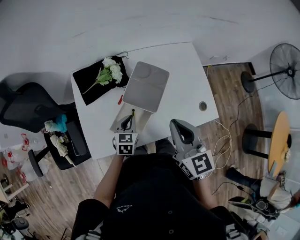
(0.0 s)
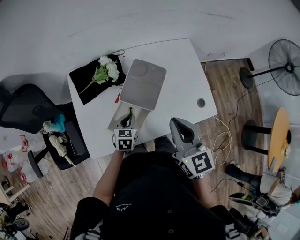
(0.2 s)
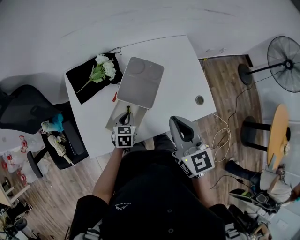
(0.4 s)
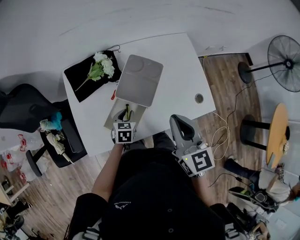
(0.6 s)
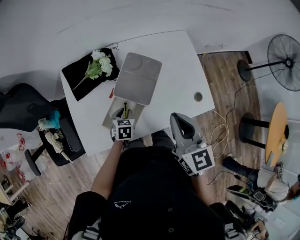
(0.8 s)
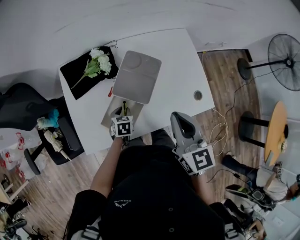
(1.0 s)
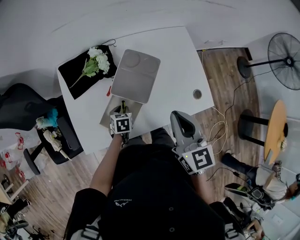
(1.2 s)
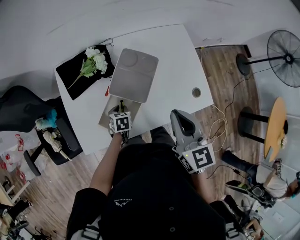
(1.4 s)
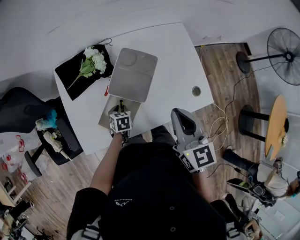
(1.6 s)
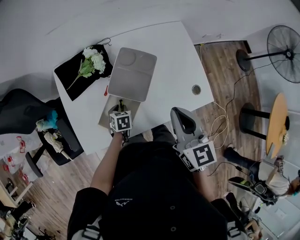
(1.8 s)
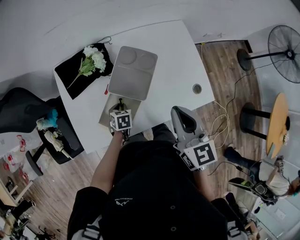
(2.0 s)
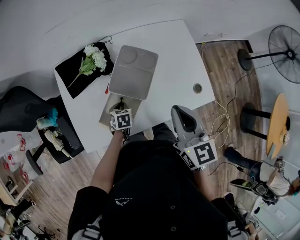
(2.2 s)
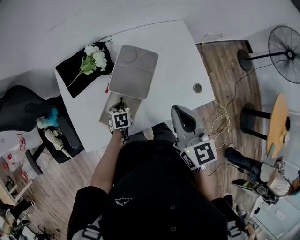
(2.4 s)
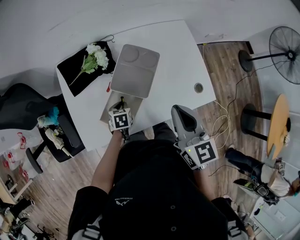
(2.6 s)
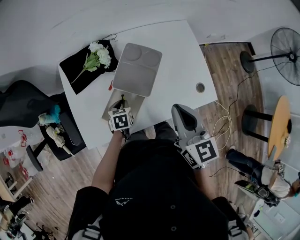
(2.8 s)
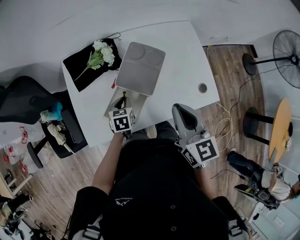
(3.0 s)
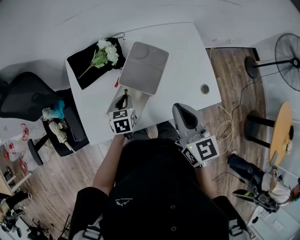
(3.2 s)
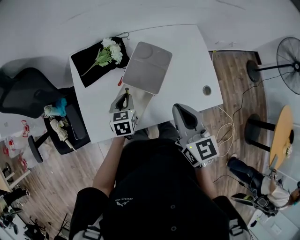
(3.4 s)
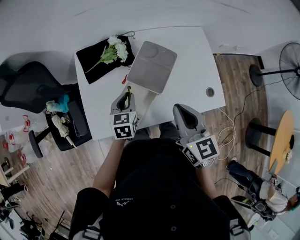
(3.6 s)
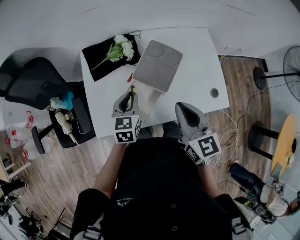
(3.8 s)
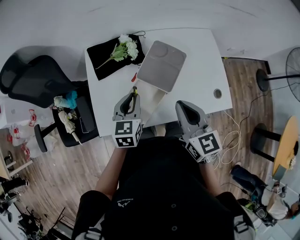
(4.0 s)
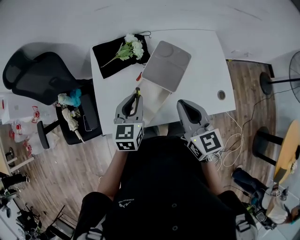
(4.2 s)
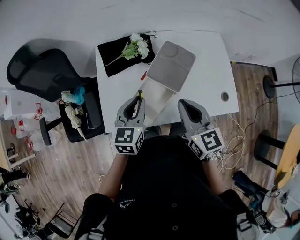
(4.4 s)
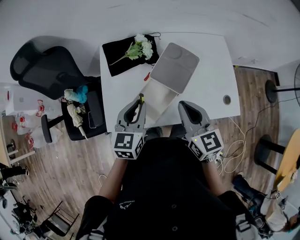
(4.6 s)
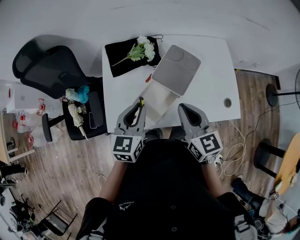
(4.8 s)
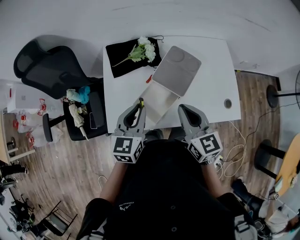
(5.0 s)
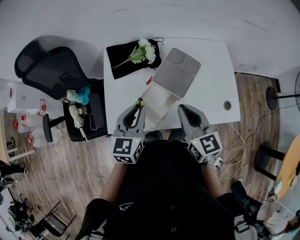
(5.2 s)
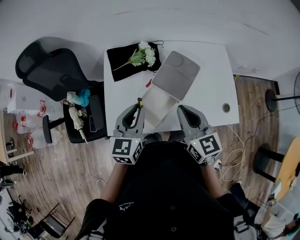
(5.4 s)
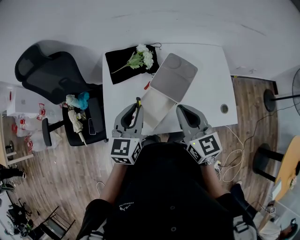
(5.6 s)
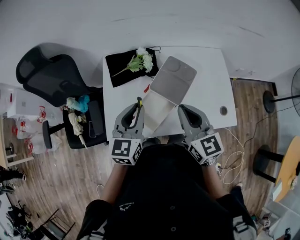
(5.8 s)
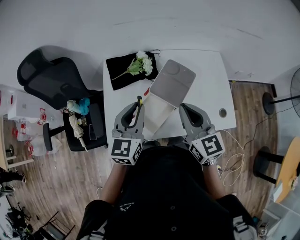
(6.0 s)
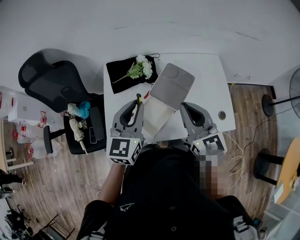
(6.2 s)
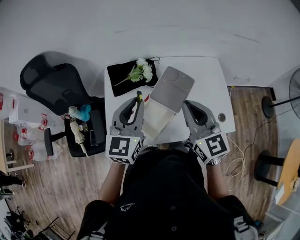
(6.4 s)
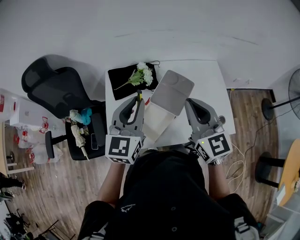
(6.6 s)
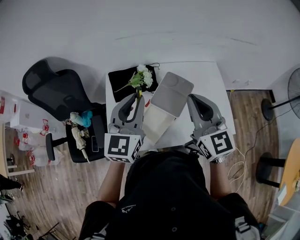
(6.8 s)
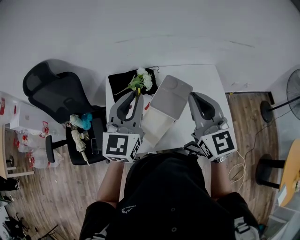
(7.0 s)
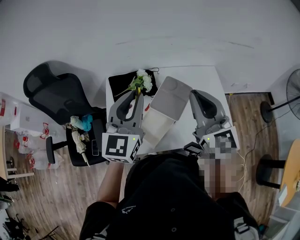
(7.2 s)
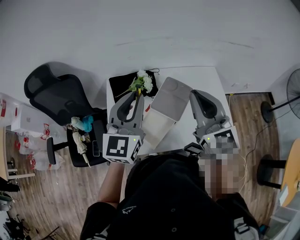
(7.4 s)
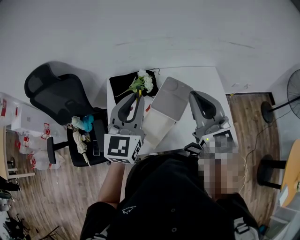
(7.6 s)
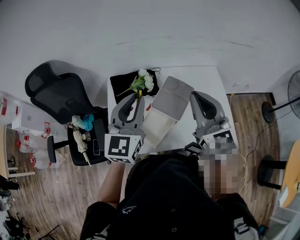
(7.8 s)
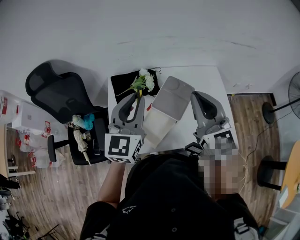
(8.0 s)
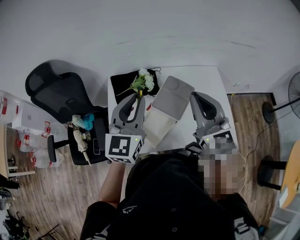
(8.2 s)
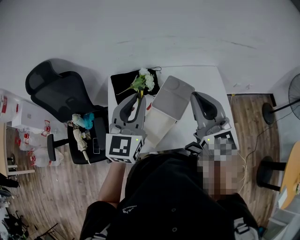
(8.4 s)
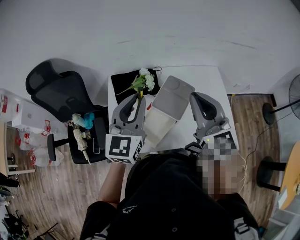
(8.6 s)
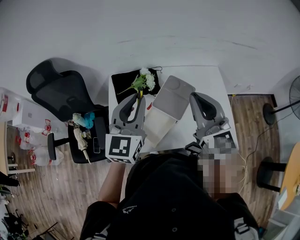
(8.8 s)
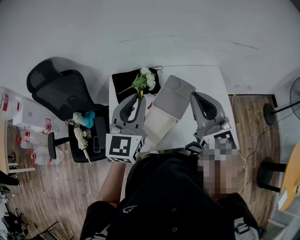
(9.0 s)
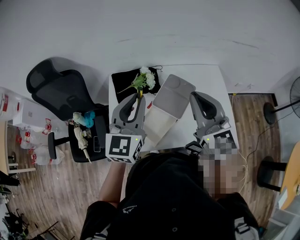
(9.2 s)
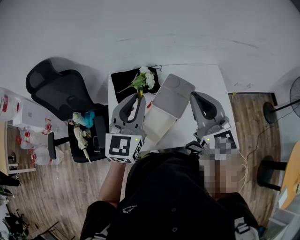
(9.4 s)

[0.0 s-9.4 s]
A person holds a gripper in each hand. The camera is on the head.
0.0 to 1.6 s: The left gripper heads downward, covering about 10 cm, changes its angle by approximately 30 degrees, and opens its fingers, while the right gripper goes roughly 5 cm to the right.
1.6 to 3.2 s: The left gripper shifts approximately 10 cm upward.
3.2 to 4.8 s: The left gripper is displaced upward and backward by roughly 20 cm, and rotates roughly 20 degrees, while the right gripper moves to the left, roughly 10 cm.
4.8 to 6.2 s: The two grippers go approximately 10 cm upward.
6.2 to 7.8 s: The two grippers go about 10 cm upward.
7.8 to 9.4 s: The two grippers keep their place.

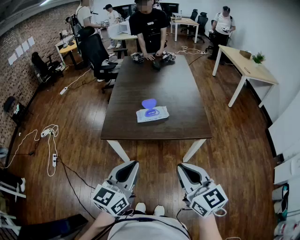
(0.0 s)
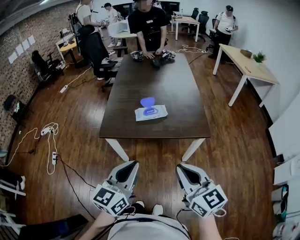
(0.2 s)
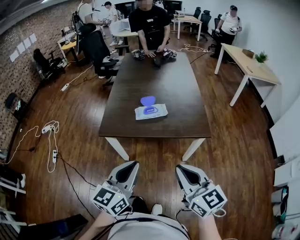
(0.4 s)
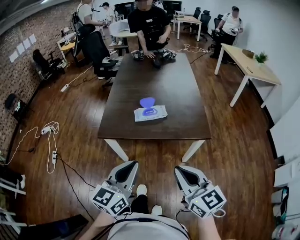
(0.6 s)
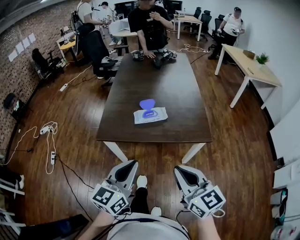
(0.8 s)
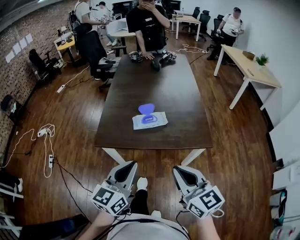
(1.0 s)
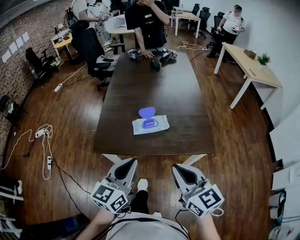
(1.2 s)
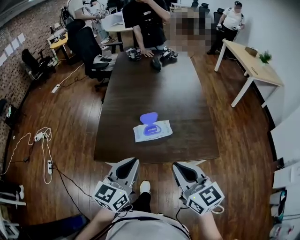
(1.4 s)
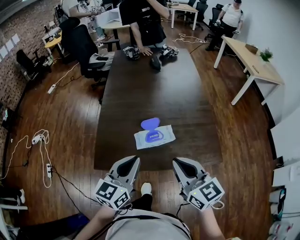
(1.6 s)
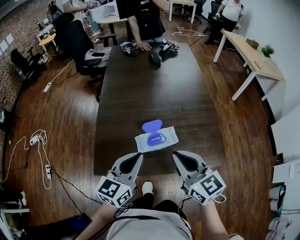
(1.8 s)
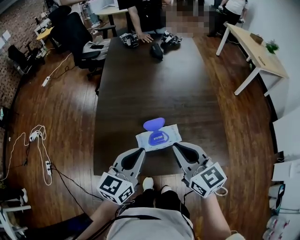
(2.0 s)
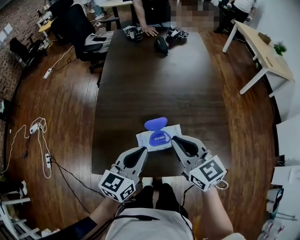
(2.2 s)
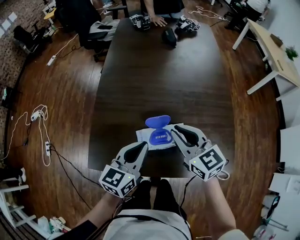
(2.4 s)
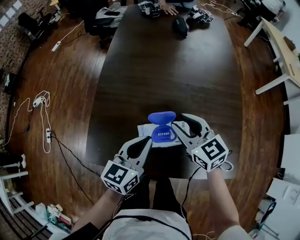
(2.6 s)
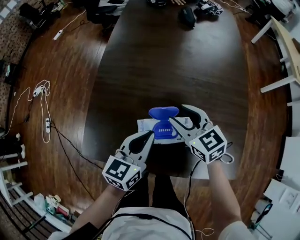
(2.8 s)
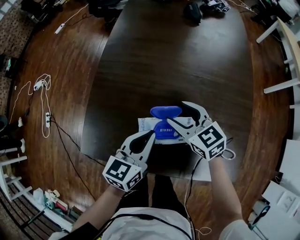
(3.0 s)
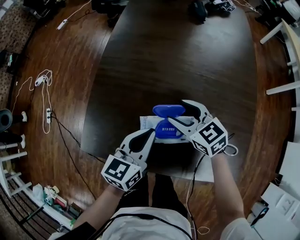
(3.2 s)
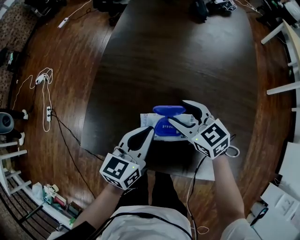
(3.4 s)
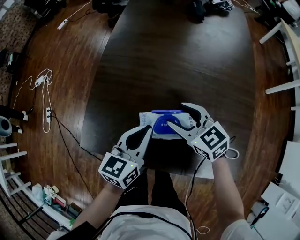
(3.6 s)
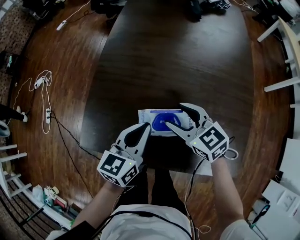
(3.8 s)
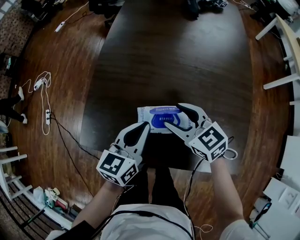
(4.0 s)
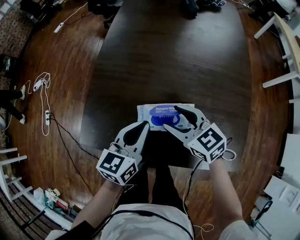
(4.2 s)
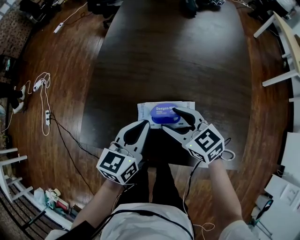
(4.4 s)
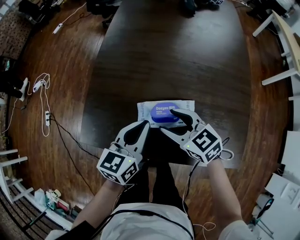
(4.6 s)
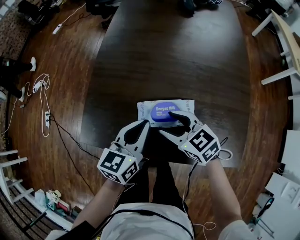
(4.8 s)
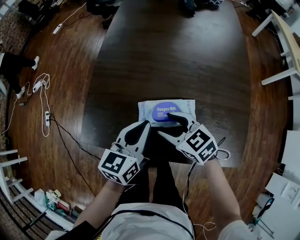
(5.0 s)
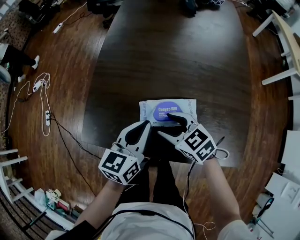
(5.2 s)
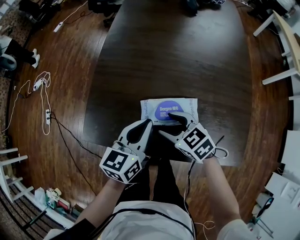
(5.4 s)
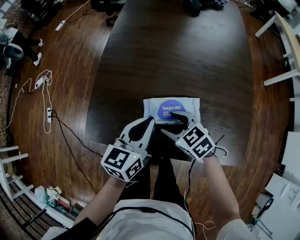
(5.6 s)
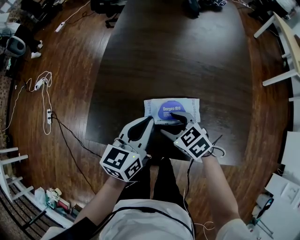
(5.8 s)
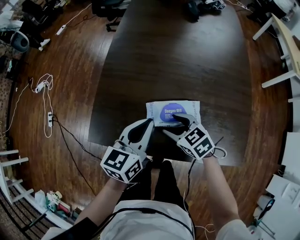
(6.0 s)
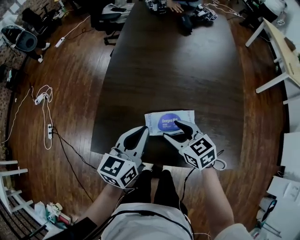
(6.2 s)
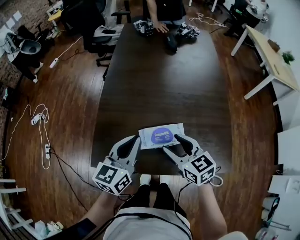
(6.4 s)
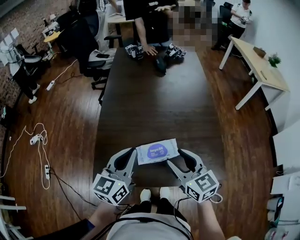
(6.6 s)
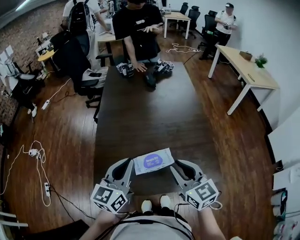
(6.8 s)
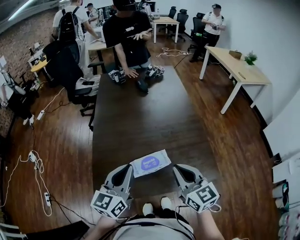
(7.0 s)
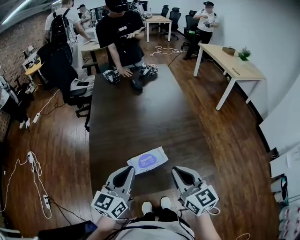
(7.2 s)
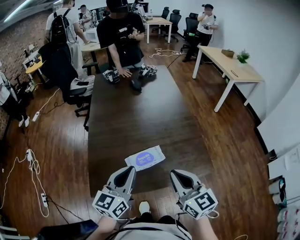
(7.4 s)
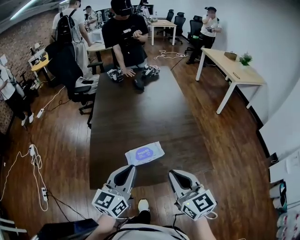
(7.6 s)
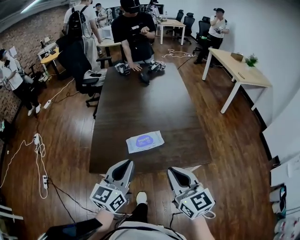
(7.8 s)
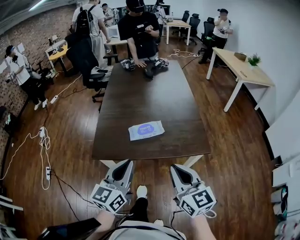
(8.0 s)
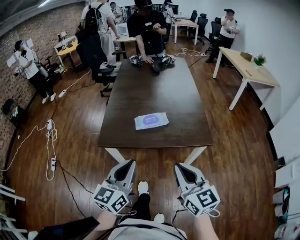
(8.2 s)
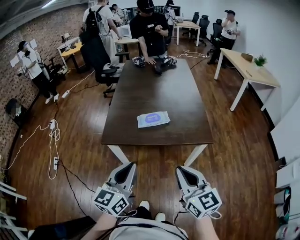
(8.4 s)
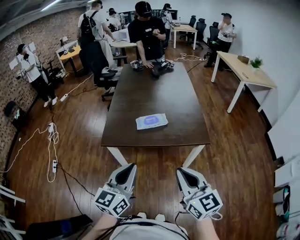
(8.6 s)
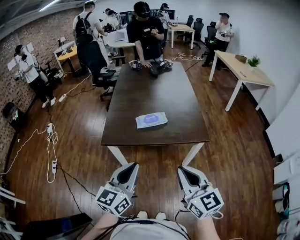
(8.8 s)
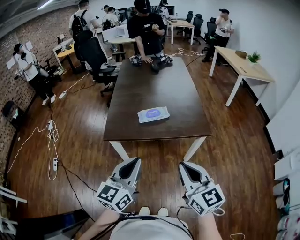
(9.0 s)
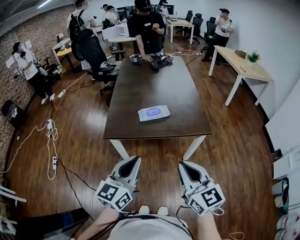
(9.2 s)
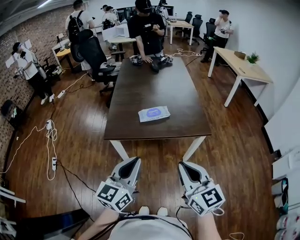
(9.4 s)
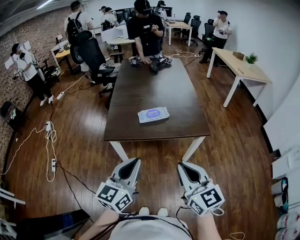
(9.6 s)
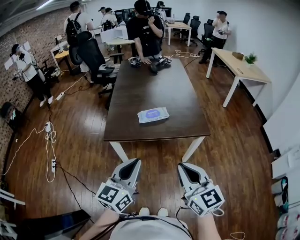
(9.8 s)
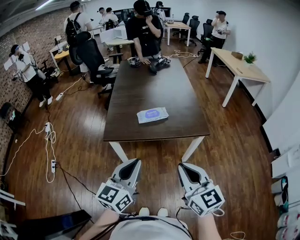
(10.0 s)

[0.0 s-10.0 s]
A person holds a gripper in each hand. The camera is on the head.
0.0 to 1.4 s: The two grippers go approximately 20 cm forward.
1.4 to 2.8 s: Both grippers move forward and downward, roughly 35 cm. The right gripper changes its angle by roughly 20 degrees, and opens its fingers.
2.8 to 4.2 s: The right gripper goes approximately 5 cm backward.
4.2 to 5.8 s: The right gripper shifts approximately 5 cm downward, and rotates roughly 20 degrees.
5.8 to 7.2 s: The left gripper shifts about 20 cm upward, and changes its angle by roughly 20 degrees. The right gripper travels upward by approximately 25 cm, angles its fingers upward, by about 40 degrees, and closes.
7.2 to 8.6 s: The two grippers go roughly 35 cm backward.
8.6 to 10.0 s: The right gripper ends up roughly 5 cm from where it was.

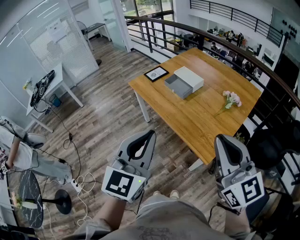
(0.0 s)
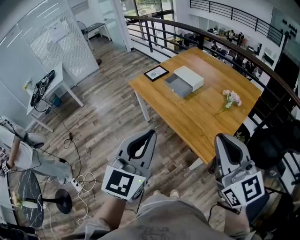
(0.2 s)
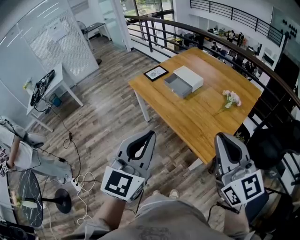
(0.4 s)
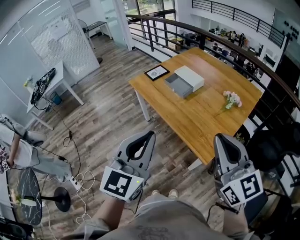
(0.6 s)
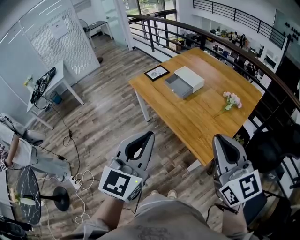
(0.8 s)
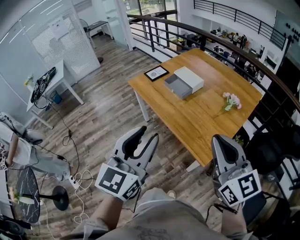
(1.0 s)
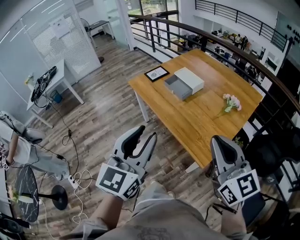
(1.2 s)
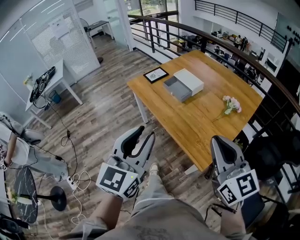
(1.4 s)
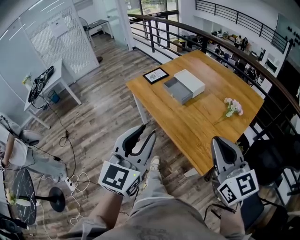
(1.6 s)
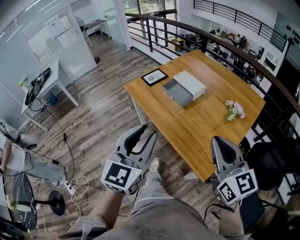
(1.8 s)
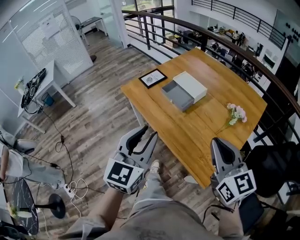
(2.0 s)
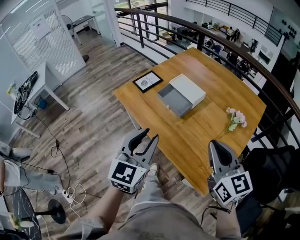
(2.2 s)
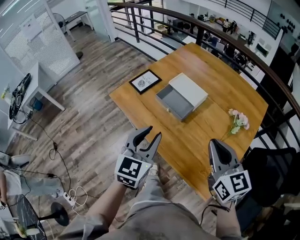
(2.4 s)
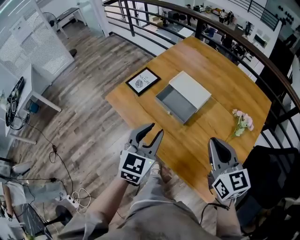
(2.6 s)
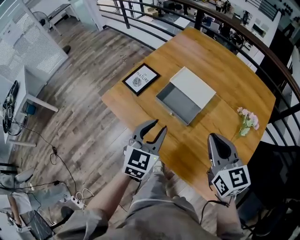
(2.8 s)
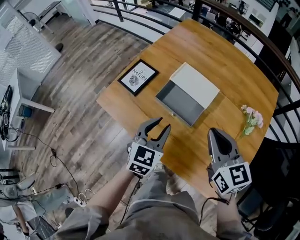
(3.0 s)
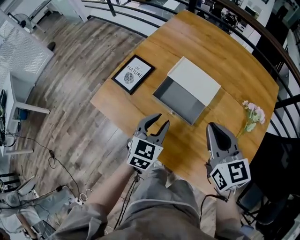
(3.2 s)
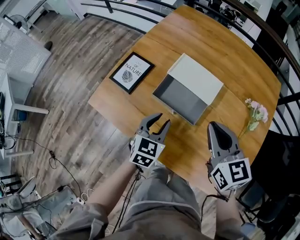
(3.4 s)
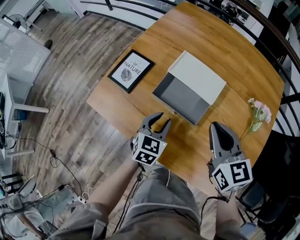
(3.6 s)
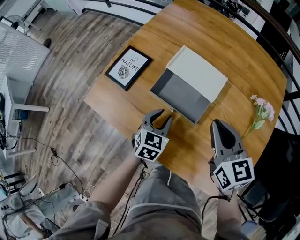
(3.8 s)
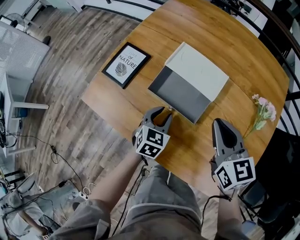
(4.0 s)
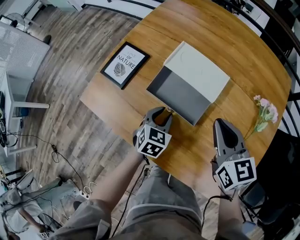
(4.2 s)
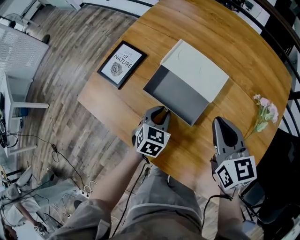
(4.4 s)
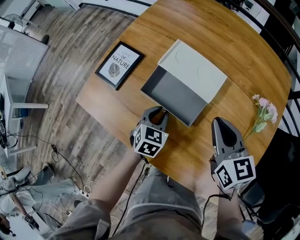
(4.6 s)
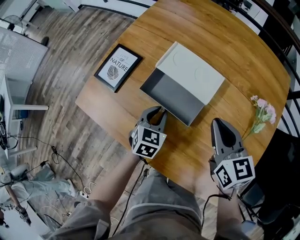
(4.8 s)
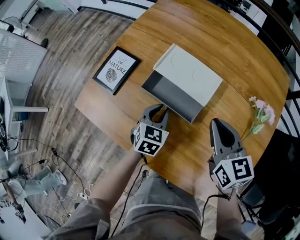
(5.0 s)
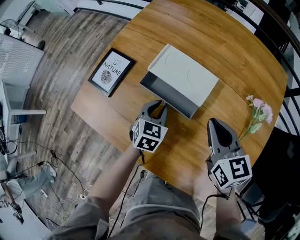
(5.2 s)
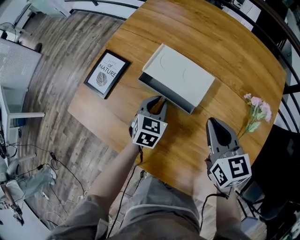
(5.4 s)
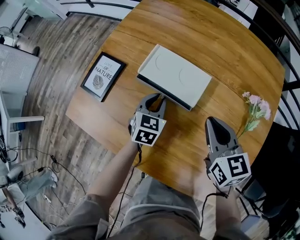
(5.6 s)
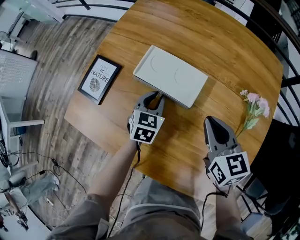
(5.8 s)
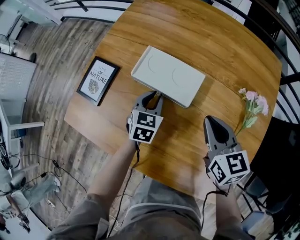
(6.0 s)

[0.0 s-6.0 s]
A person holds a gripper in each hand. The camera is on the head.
0.0 to 1.6 s: The right gripper heads forward and downward, covering about 10 cm, while the left gripper goes approximately 5 cm forward, and opens its fingers.
1.6 to 3.0 s: The grippers both shift forward and downward by about 40 cm. The left gripper rotates roughly 30 degrees. Meanwhile the right gripper changes its angle by roughly 20 degrees.
3.0 to 4.4 s: The right gripper is displaced downward and forward by about 10 cm. Meanwhile the left gripper heads downward, covering about 20 cm, and swivels about 20 degrees.
4.4 to 6.0 s: The right gripper heads to the right, covering roughly 5 cm, while the left gripper shifts some 10 cm forward and to the right.
